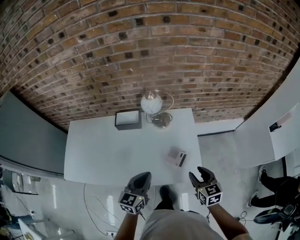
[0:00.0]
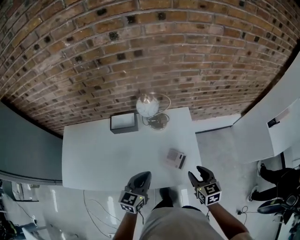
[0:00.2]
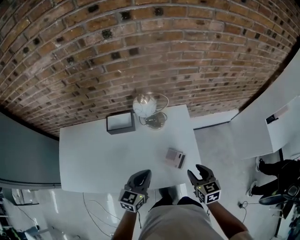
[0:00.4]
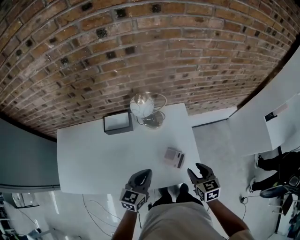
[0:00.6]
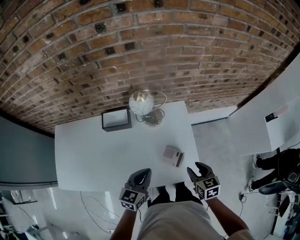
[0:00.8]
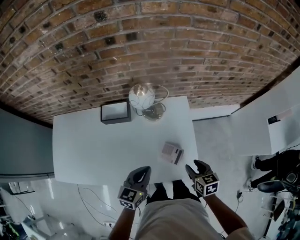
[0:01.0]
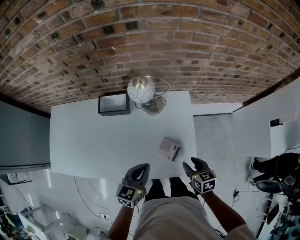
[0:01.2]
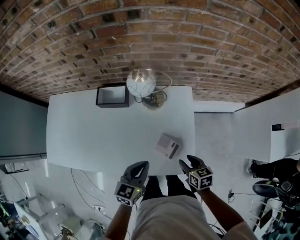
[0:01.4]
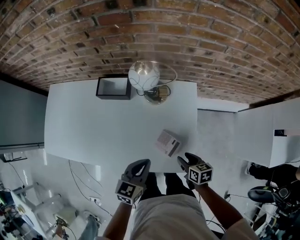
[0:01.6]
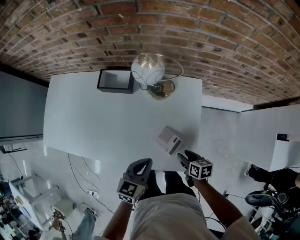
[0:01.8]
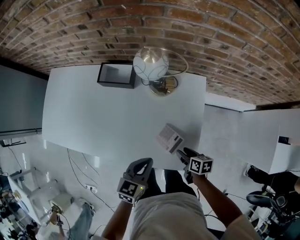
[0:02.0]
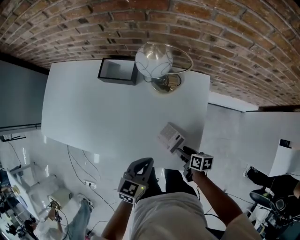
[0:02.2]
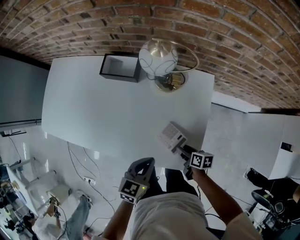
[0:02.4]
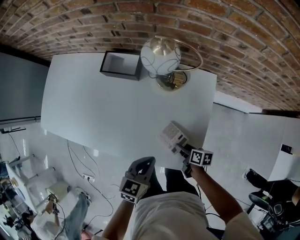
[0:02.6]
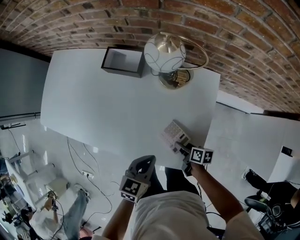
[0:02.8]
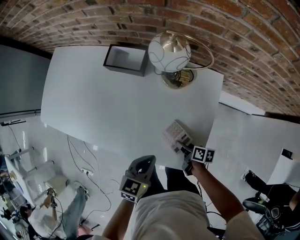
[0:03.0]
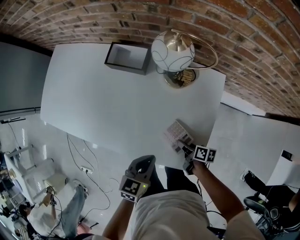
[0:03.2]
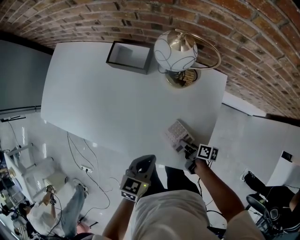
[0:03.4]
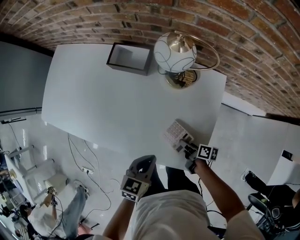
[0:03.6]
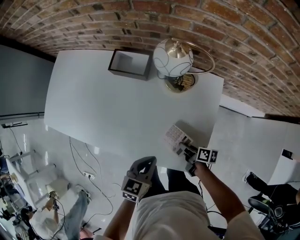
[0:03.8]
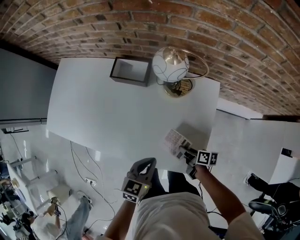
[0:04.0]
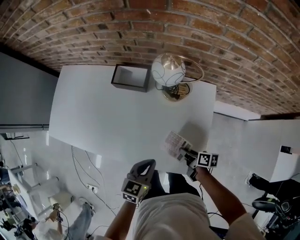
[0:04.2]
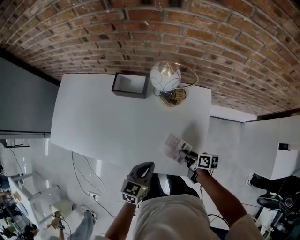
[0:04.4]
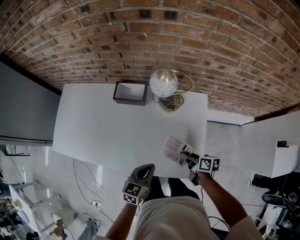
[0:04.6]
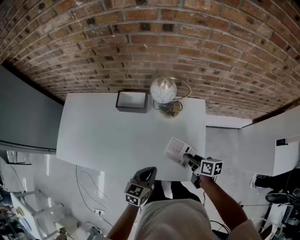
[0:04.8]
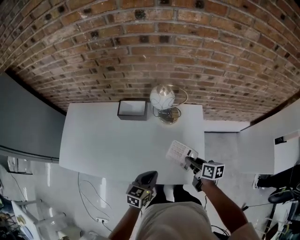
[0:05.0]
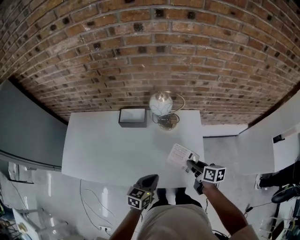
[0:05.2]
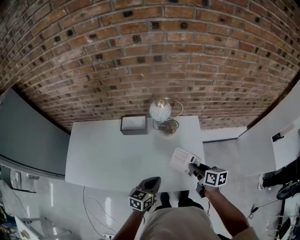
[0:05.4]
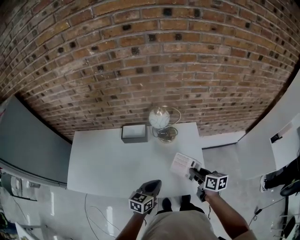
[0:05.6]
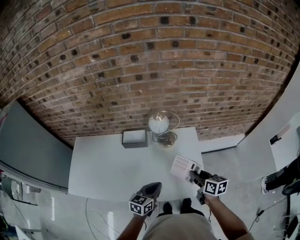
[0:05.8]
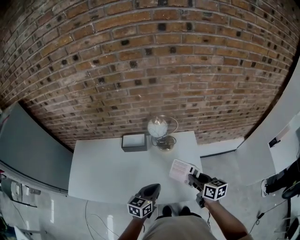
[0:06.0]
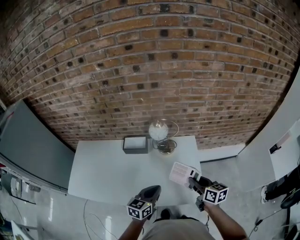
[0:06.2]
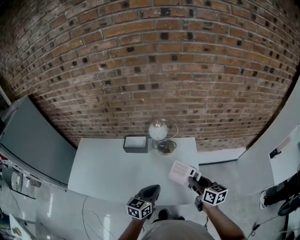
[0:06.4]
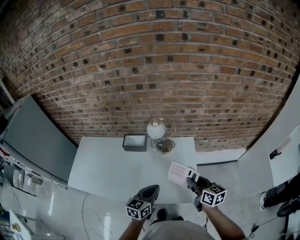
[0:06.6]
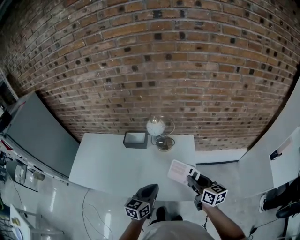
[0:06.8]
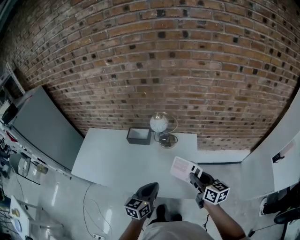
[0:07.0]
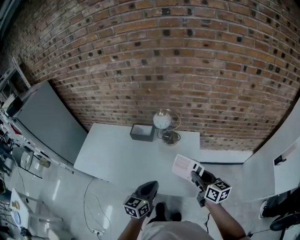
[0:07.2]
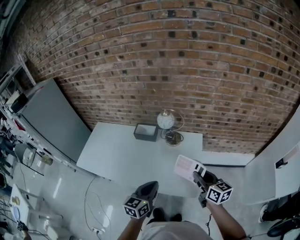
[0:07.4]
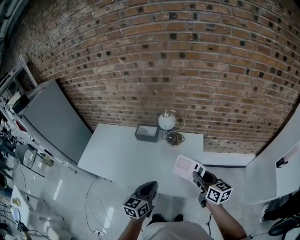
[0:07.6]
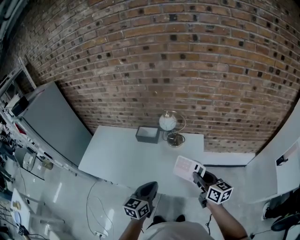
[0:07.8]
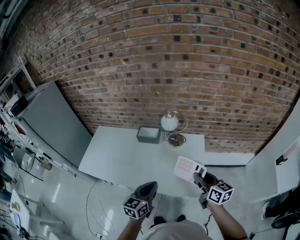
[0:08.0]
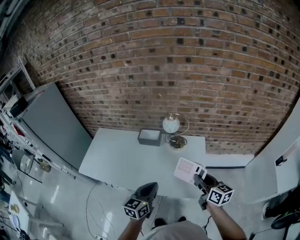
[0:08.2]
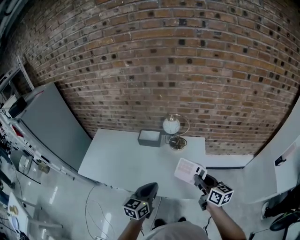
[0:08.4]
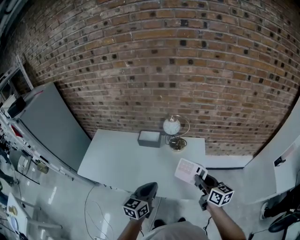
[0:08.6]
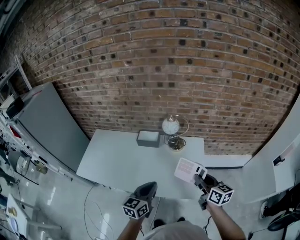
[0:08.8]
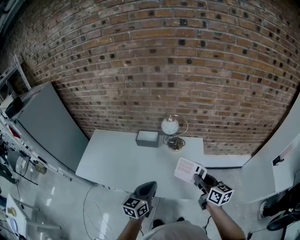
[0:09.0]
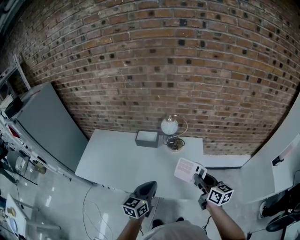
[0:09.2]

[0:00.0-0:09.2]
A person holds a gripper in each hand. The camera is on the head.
0:00.0 to 0:01.6: The left gripper shifts approximately 15 cm downward, forward and to the right; the right gripper shifts some 20 cm downward and forward, and swivels approximately 30 degrees.
0:01.6 to 0:03.0: The left gripper travels downward by some 5 cm, while the right gripper heads downward, covering roughly 15 cm, and changes its angle by about 30 degrees.
0:03.0 to 0:04.6: The left gripper heads upward, covering roughly 5 cm; the right gripper travels upward by about 15 cm, and closes up.
0:04.6 to 0:06.2: The left gripper goes about 10 cm upward. Meanwhile the right gripper goes roughly 20 cm upward, and swivels roughly 30 degrees.
0:06.2 to 0:07.6: The left gripper shifts some 15 cm backward and upward. Meanwhile the right gripper shifts some 10 cm backward, to the right and upward.
0:07.6 to 0:09.2: Both grippers move to the left, roughly 5 cm.

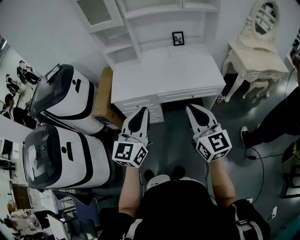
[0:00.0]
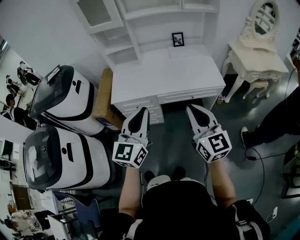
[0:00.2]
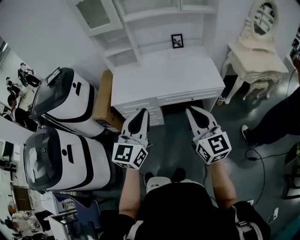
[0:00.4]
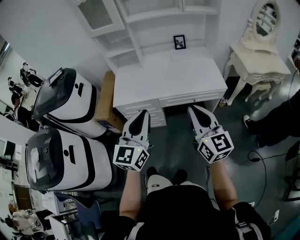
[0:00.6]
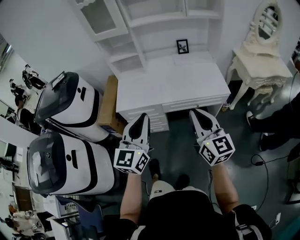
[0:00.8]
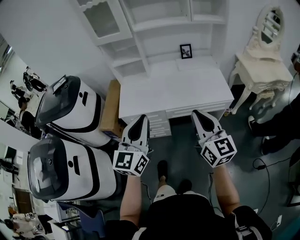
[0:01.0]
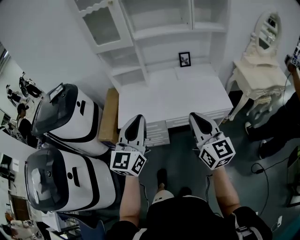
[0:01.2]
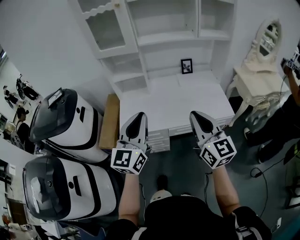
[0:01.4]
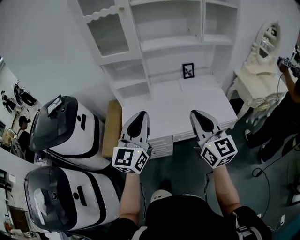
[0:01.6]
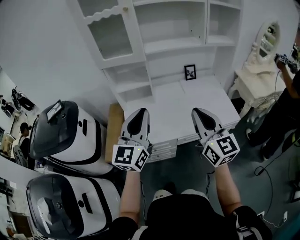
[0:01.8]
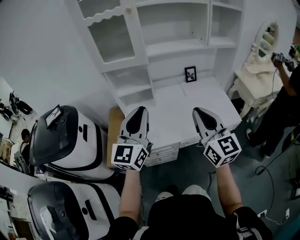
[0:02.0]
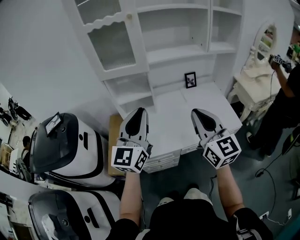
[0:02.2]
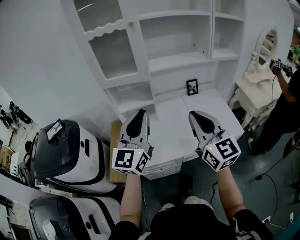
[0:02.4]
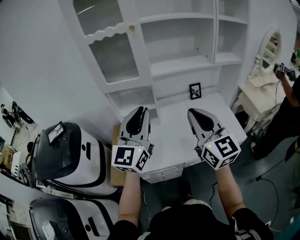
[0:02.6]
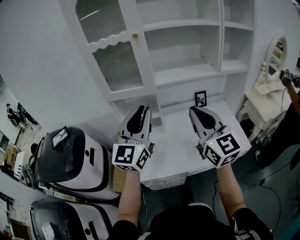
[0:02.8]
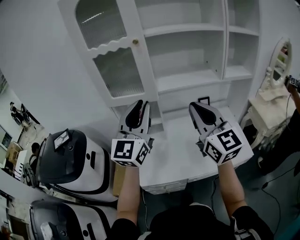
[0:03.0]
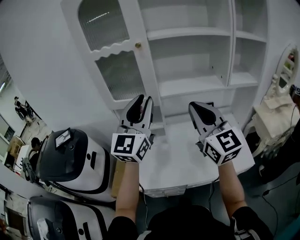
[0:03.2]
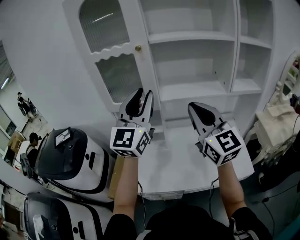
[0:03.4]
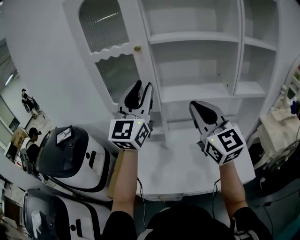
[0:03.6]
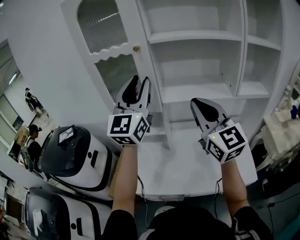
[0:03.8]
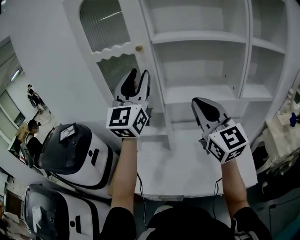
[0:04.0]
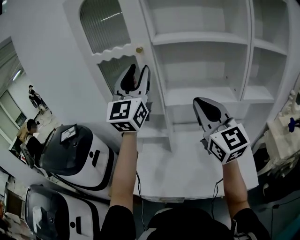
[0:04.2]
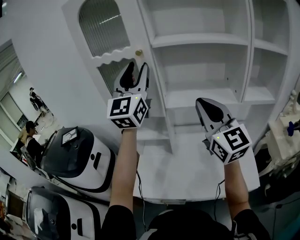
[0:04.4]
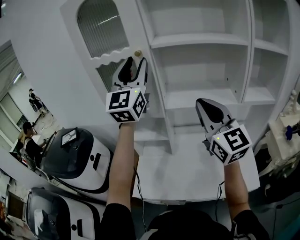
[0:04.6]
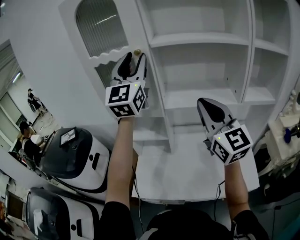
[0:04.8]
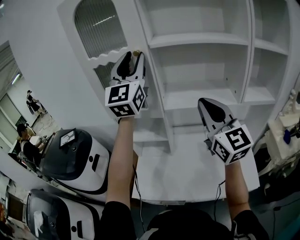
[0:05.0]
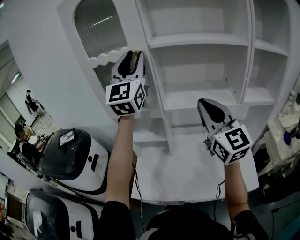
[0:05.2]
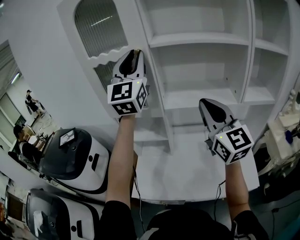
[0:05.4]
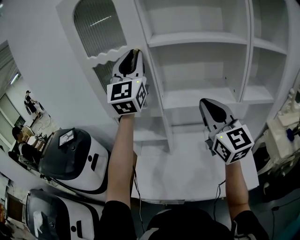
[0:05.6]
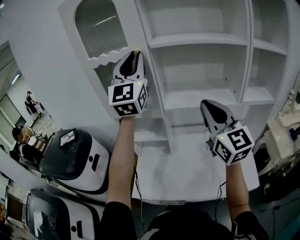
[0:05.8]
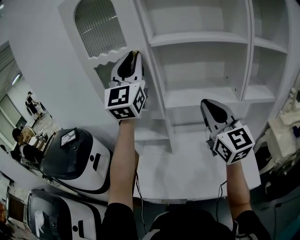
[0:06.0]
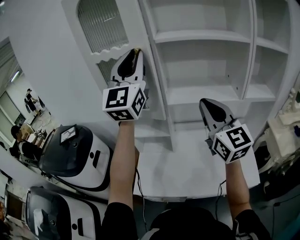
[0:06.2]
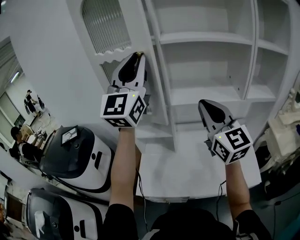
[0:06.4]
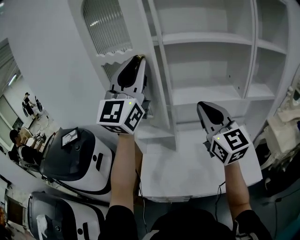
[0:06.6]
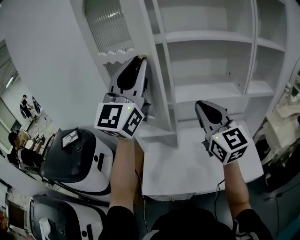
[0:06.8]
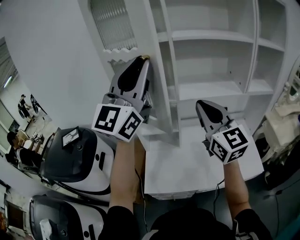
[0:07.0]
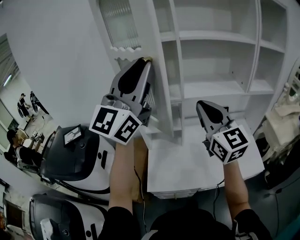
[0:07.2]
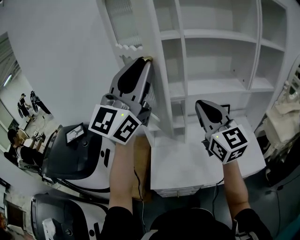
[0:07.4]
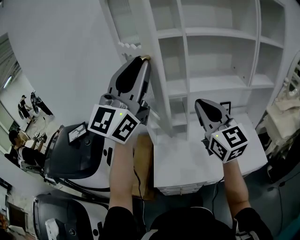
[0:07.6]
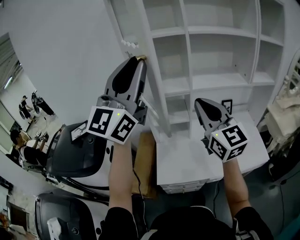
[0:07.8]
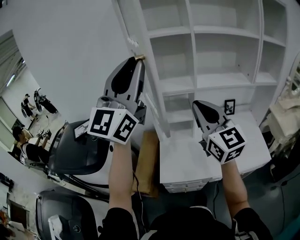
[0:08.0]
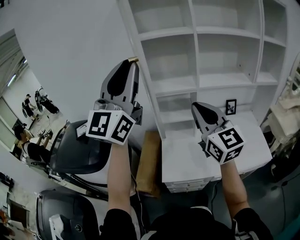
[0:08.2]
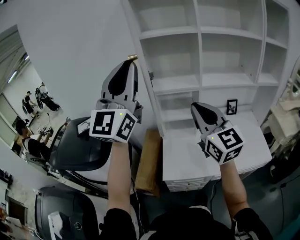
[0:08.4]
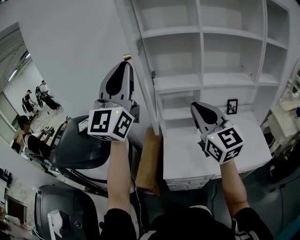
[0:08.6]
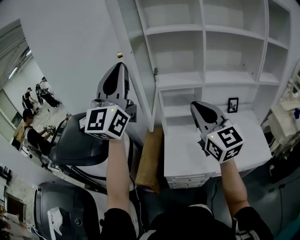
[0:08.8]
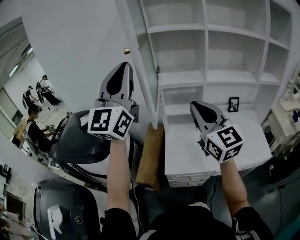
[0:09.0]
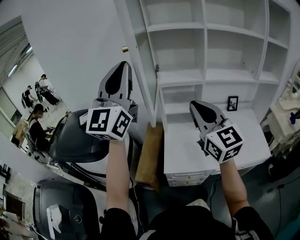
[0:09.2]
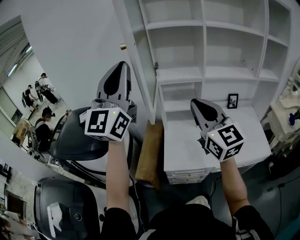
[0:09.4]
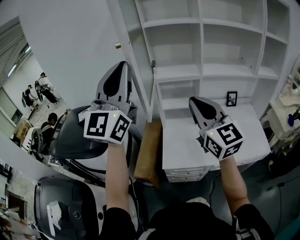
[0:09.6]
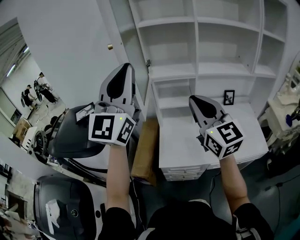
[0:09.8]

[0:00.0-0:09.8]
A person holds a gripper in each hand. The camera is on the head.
0:00.0 to 0:01.4: The left gripper heads forward, to the left and upward, covering some 20 cm; the right gripper is displaced forward and to the left by about 20 cm.
0:01.4 to 0:02.8: The left gripper goes roughly 25 cm forward and upward, while the right gripper goes roughly 30 cm forward, upward and to the left.
0:02.8 to 0:04.2: Both grippers move forward and upward, some 20 cm. The left gripper swivels some 20 degrees.
0:04.2 to 0:05.6: The left gripper moves approximately 5 cm.
0:05.6 to 0:07.0: The right gripper shifts about 10 cm to the left, while the left gripper shifts about 15 cm backward and to the left, and turns by approximately 30 degrees.
0:07.0 to 0:08.4: Both grippers travel together to the left and backward, approximately 20 cm.
0:08.4 to 0:09.8: The left gripper heads backward, covering some 5 cm.

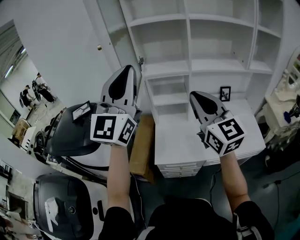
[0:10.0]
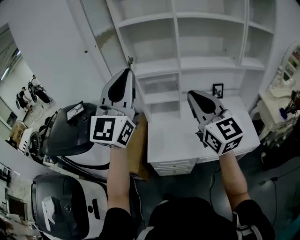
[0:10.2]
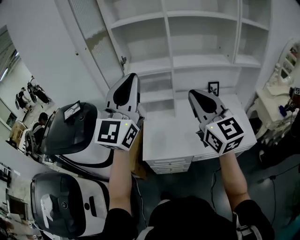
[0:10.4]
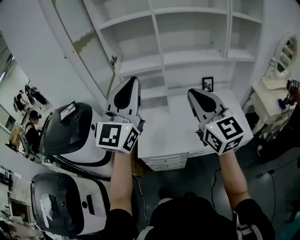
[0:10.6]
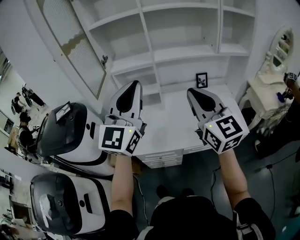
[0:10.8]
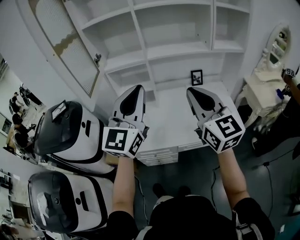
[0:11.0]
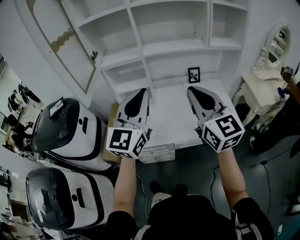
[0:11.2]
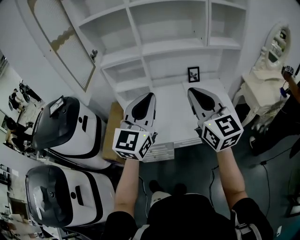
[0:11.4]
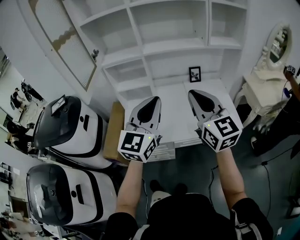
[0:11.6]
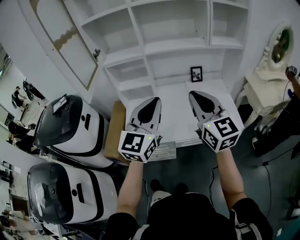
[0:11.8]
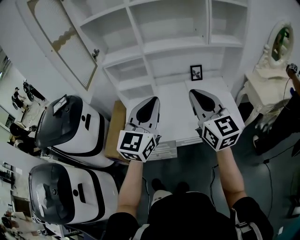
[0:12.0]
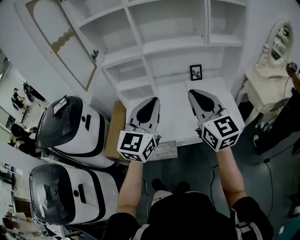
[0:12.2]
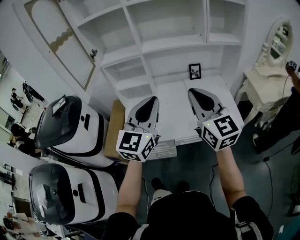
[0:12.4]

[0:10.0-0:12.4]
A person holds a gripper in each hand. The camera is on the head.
0:10.0 to 0:11.2: The left gripper goes approximately 30 cm to the right and downward. Meanwhile the right gripper shifts approximately 25 cm to the right.
0:11.2 to 0:12.4: The left gripper is displaced downward by approximately 5 cm.

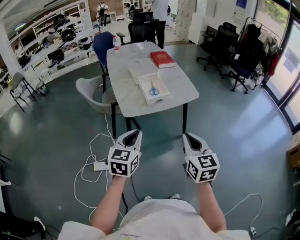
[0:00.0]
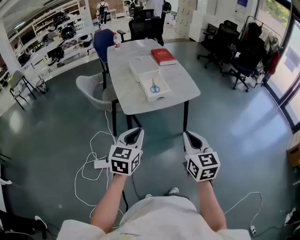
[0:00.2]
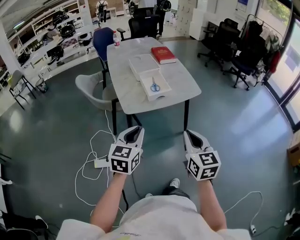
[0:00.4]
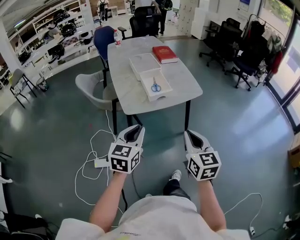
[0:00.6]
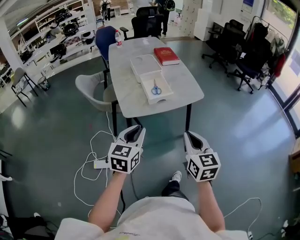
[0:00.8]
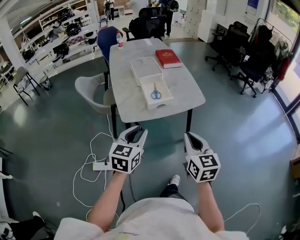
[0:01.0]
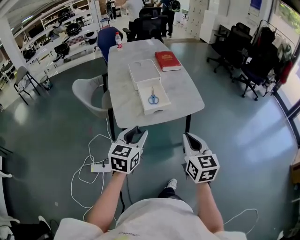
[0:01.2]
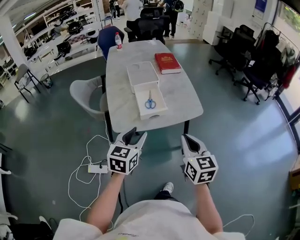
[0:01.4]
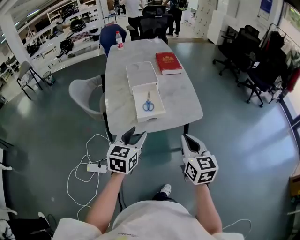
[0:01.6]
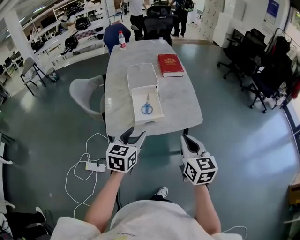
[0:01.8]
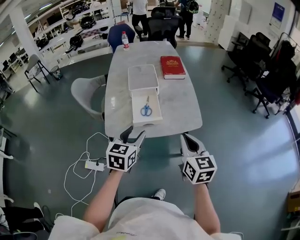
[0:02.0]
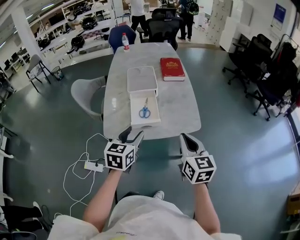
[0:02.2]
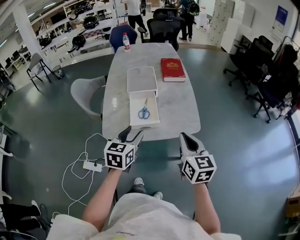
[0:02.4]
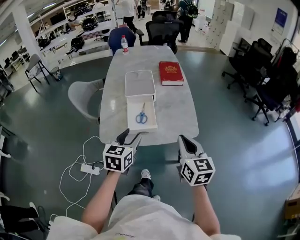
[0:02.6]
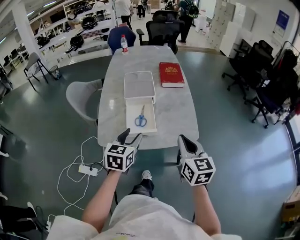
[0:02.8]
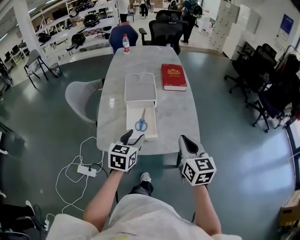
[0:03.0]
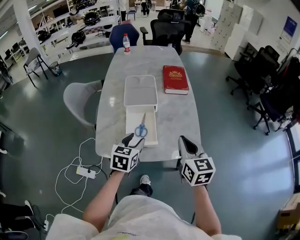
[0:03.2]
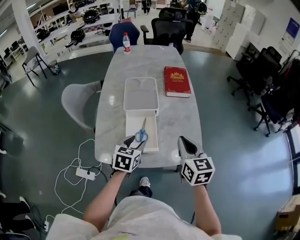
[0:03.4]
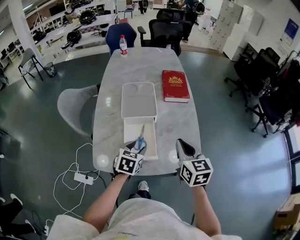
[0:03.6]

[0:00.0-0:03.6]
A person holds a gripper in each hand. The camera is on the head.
0:00.0 to 0:01.8: The grippers both shift forward and to the right by roughly 25 cm. The left gripper opens up.
0:01.8 to 0:03.6: The left gripper moves forward and downward, roughly 25 cm, and rotates about 20 degrees. Meanwhile the right gripper heads forward, covering some 25 cm.
